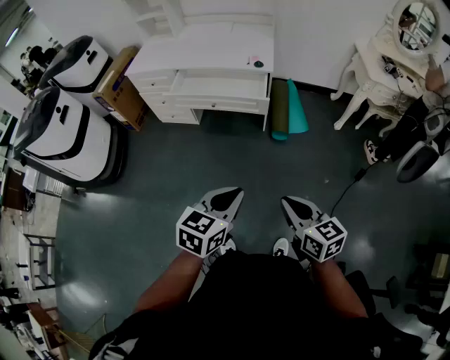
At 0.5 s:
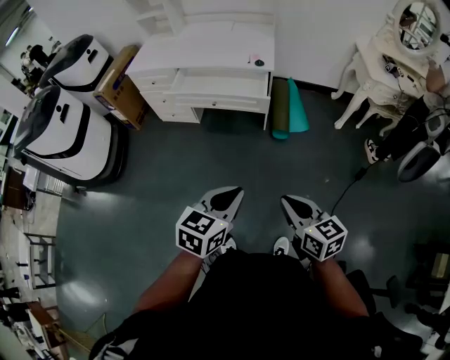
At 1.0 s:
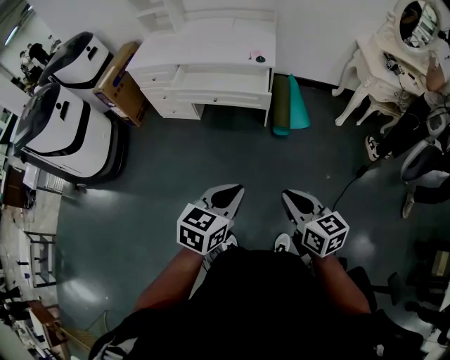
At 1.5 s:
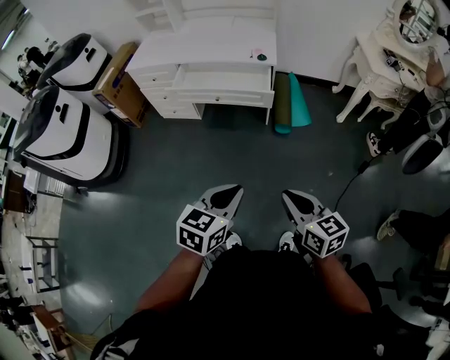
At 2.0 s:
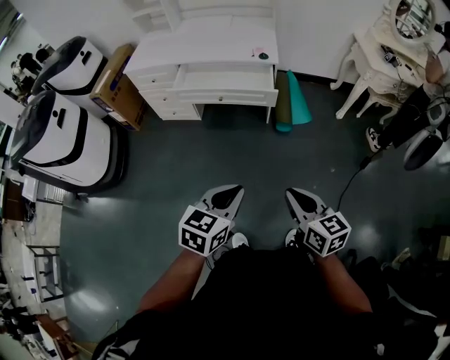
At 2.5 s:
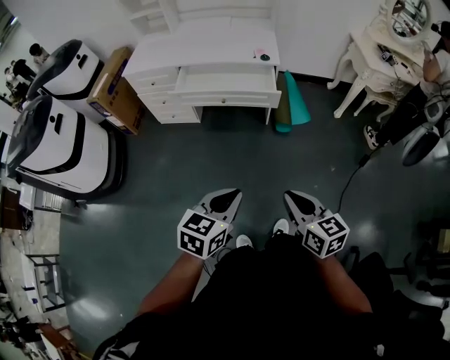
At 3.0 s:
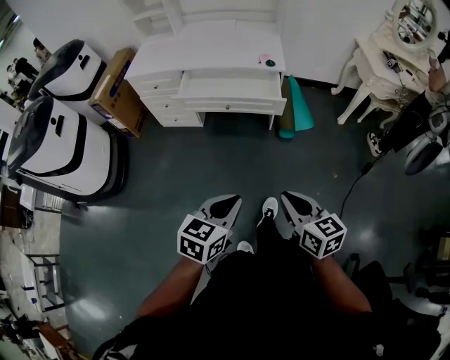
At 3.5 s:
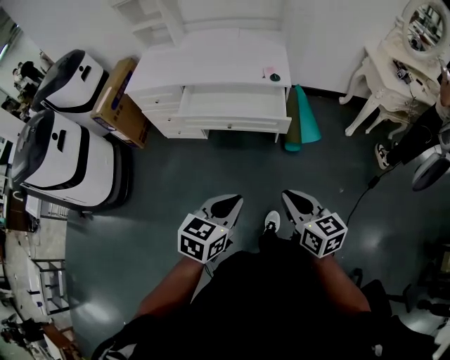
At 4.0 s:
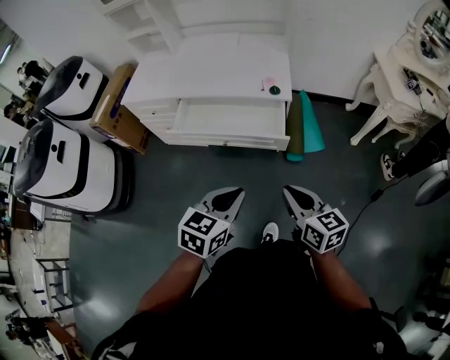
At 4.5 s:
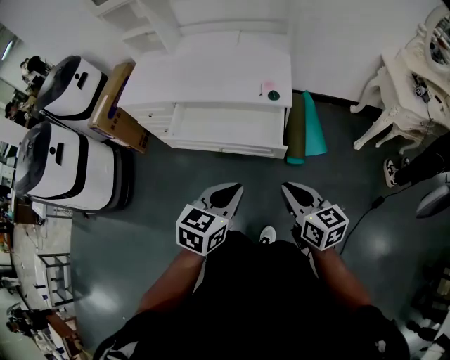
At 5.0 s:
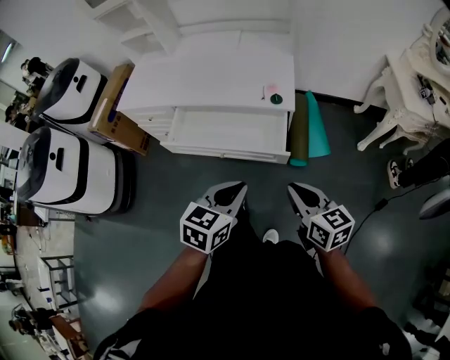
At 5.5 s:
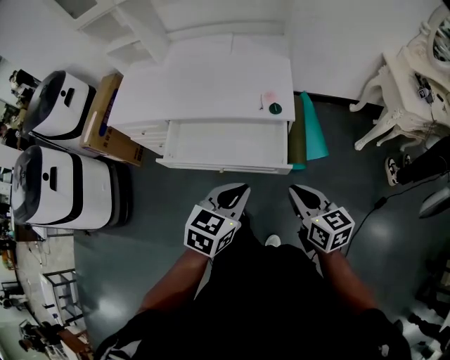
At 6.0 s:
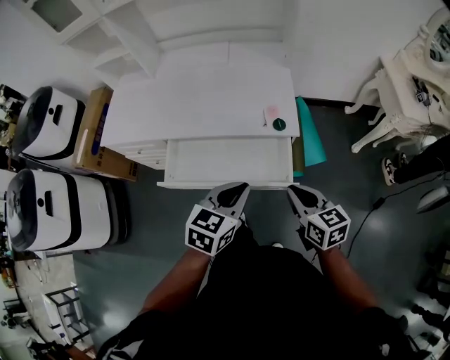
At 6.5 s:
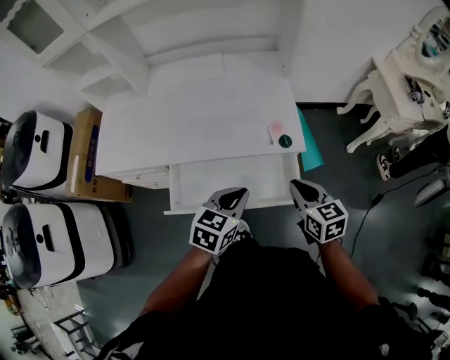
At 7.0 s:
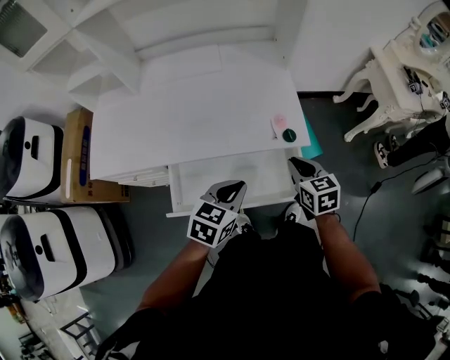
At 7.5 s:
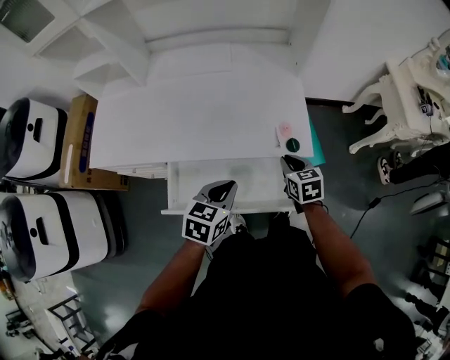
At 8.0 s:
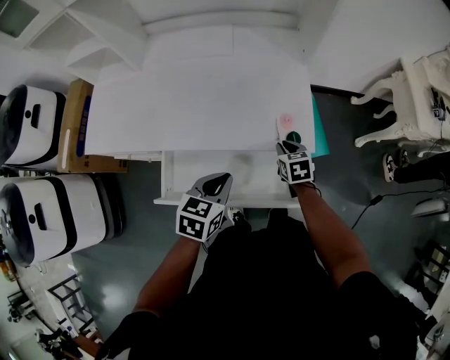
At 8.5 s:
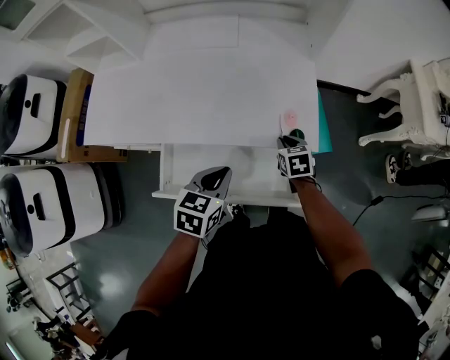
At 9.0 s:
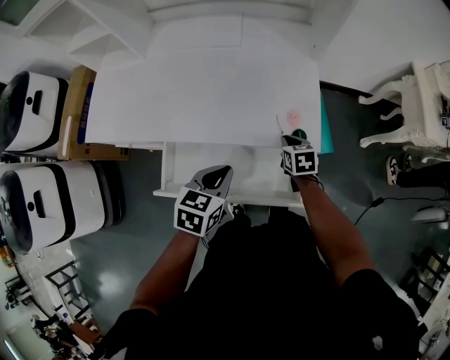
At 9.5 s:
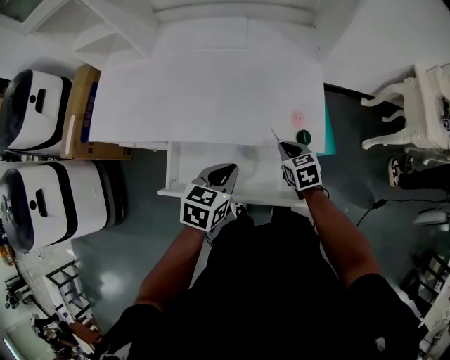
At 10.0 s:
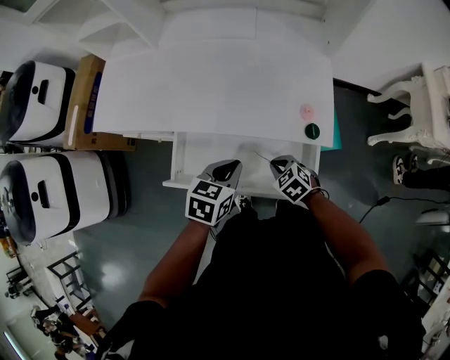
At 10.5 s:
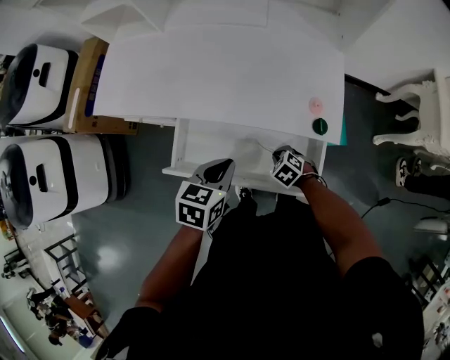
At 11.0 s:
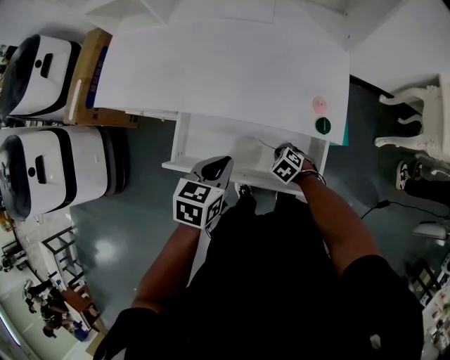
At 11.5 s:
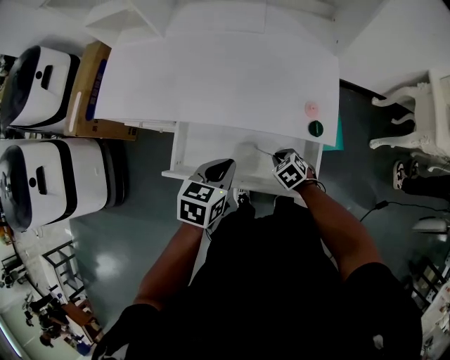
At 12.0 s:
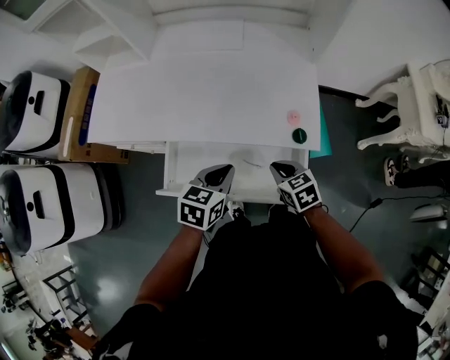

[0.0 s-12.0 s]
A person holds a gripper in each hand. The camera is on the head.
0.0 to 2.0 s: Both grippers travel together to the left, approximately 5 cm.
2.0 to 4.0 s: The two grippers go roughly 25 cm forward.
4.0 to 6.0 s: Both grippers travel together forward, some 25 cm.
6.0 to 8.0 s: The left gripper shifts some 20 cm forward, to the left and downward, while the right gripper travels forward and downward by approximately 30 cm, and rotates some 30 degrees.
8.0 to 10.0 s: The right gripper is displaced backward and to the left by some 15 cm, and changes its angle by approximately 40 degrees.
10.0 to 12.0 s: The right gripper is displaced upward by approximately 10 cm, and swivels about 30 degrees.

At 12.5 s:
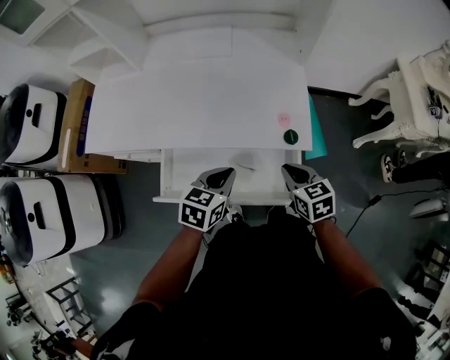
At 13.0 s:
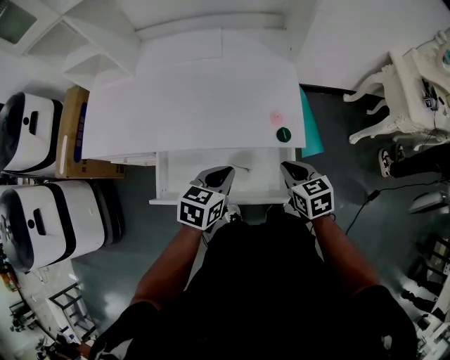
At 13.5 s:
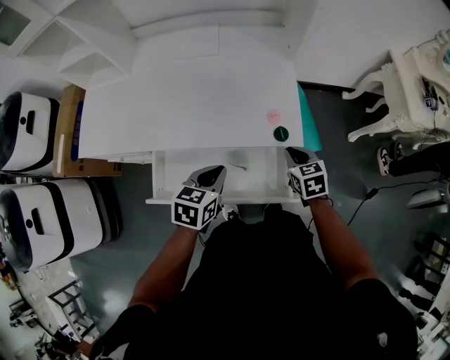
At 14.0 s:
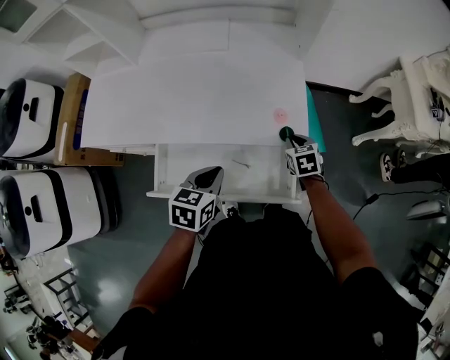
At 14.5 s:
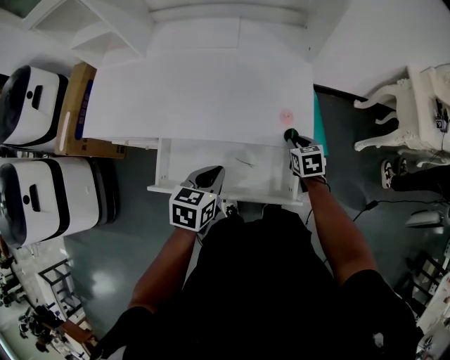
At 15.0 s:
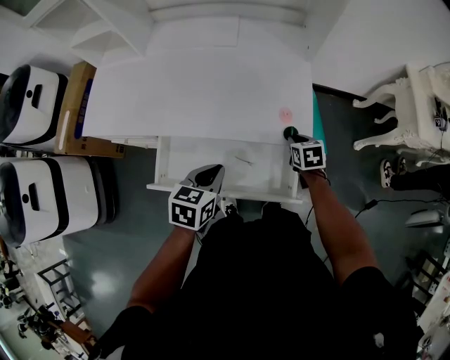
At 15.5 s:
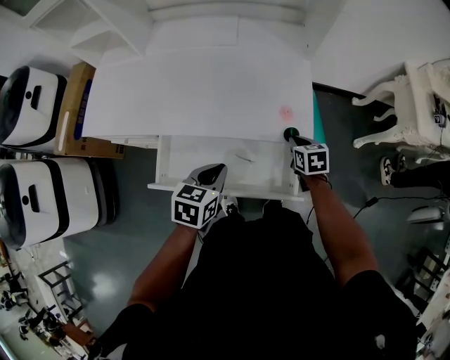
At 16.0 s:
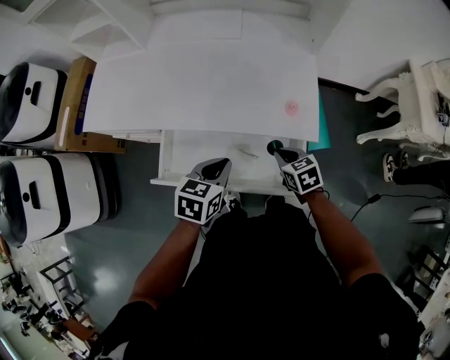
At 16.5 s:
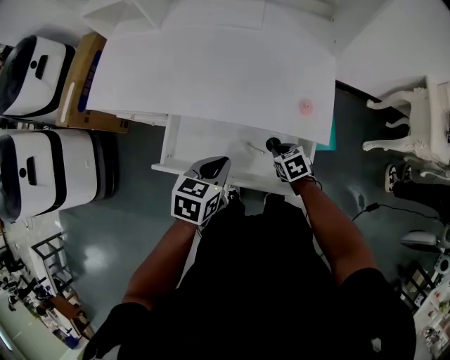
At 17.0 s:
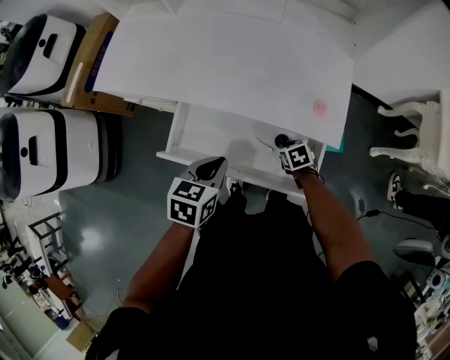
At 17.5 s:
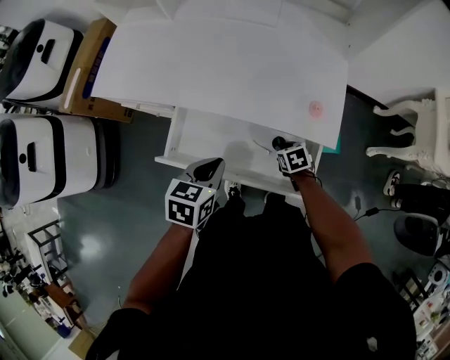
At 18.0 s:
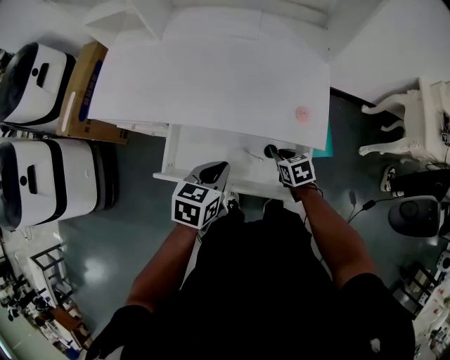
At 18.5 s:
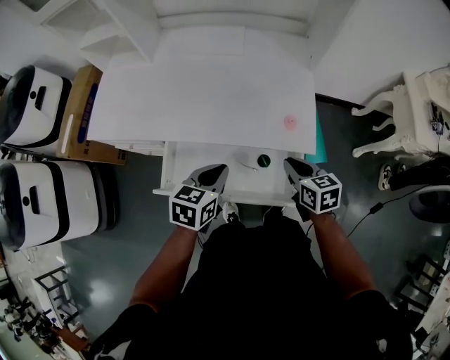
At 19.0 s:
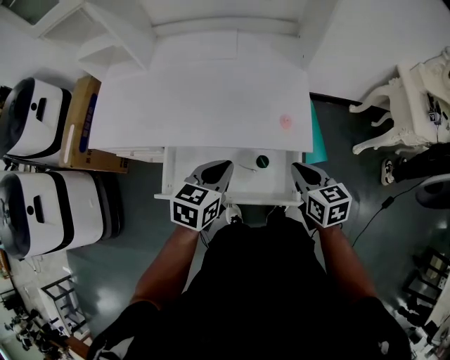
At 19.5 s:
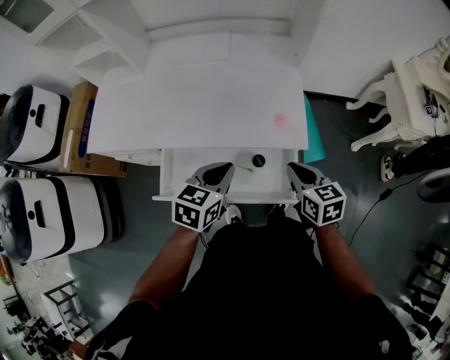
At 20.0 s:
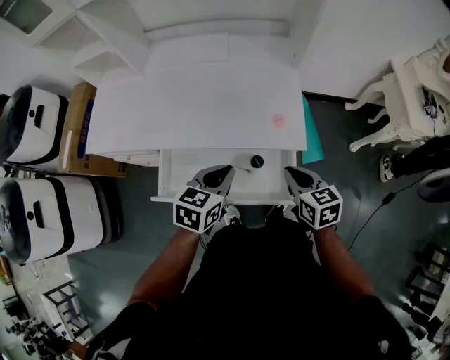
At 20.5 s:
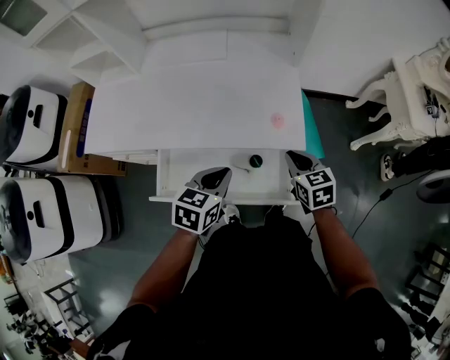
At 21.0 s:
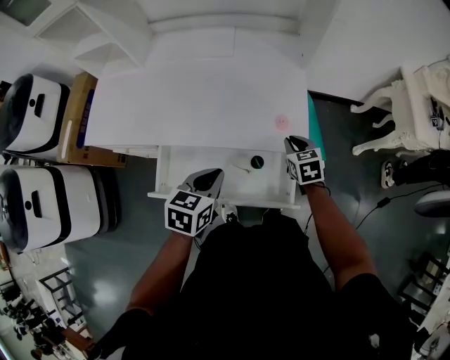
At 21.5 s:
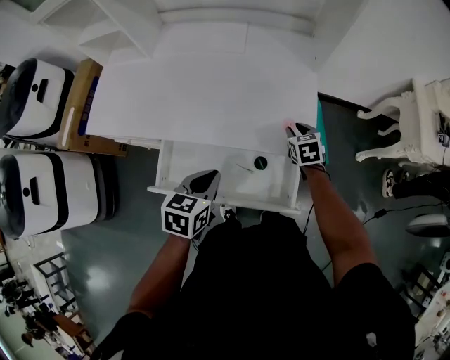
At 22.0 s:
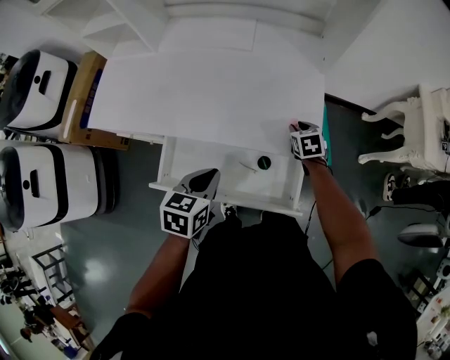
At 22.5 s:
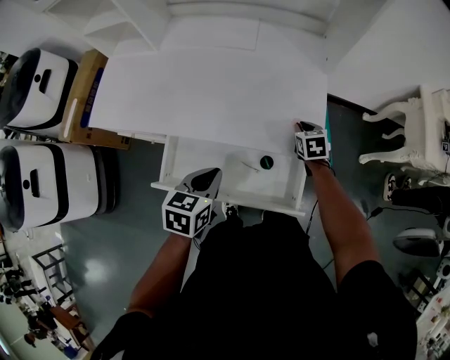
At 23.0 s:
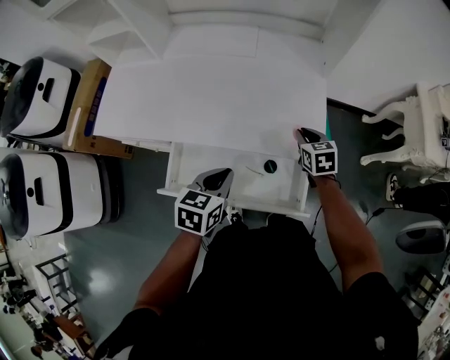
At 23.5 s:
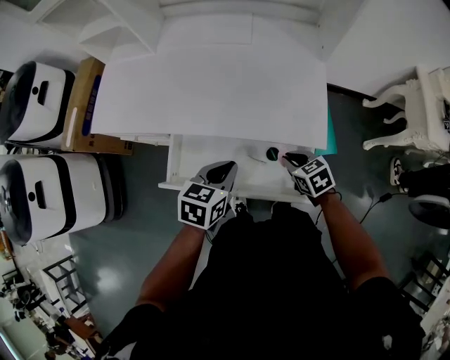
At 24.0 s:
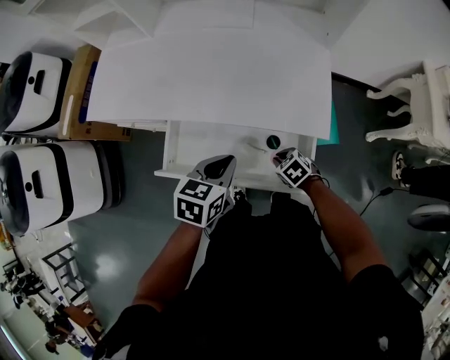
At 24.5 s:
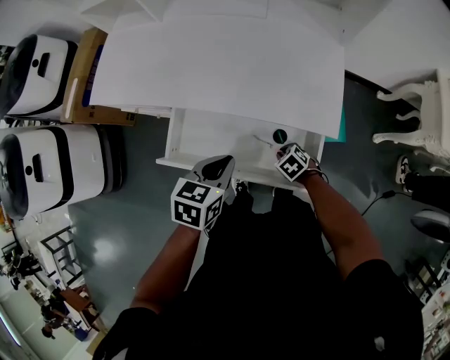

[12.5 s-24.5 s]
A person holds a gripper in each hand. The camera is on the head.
12.5 to 14.5 s: The right gripper moves forward and downward, approximately 15 cm.
14.5 to 16.5 s: The right gripper shifts some 15 cm to the left, backward and downward, and changes its angle by approximately 20 degrees.
16.5 to 18.5 s: The right gripper shifts some 15 cm upward, and swivels roughly 30 degrees.
18.5 to 20.5 s: The left gripper moves roughly 5 cm.
20.5 to 22.5 s: The right gripper is displaced forward and downward by some 20 cm. The left gripper shifts about 5 cm to the left.
22.5 to 24.5 s: The right gripper shifts by some 25 cm, and swivels about 40 degrees.

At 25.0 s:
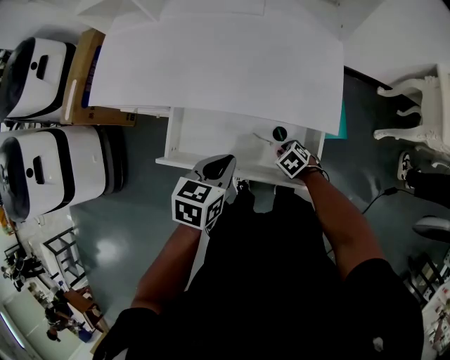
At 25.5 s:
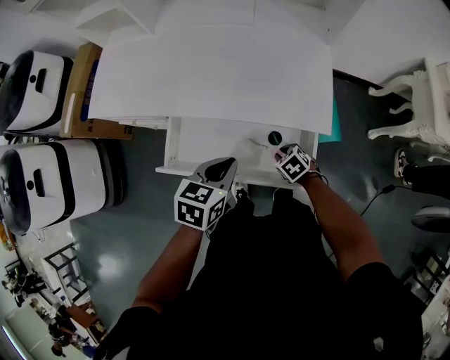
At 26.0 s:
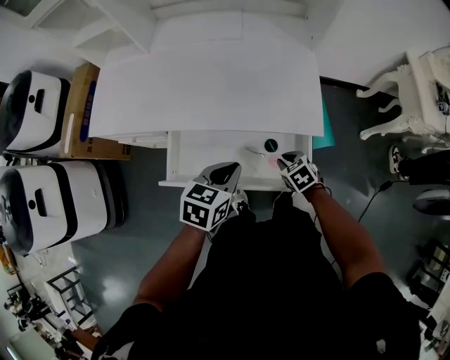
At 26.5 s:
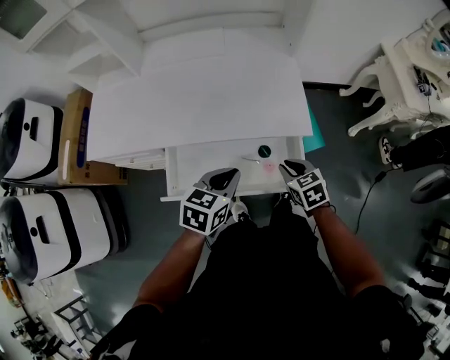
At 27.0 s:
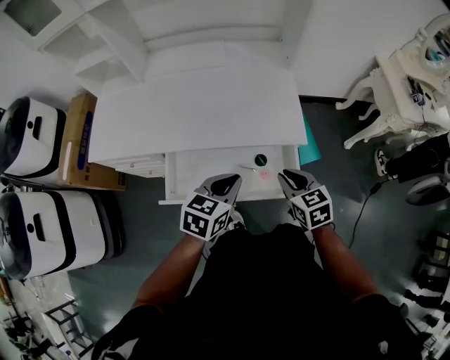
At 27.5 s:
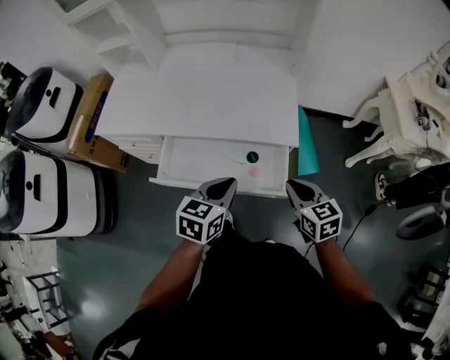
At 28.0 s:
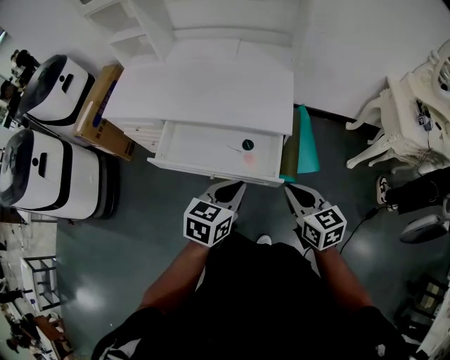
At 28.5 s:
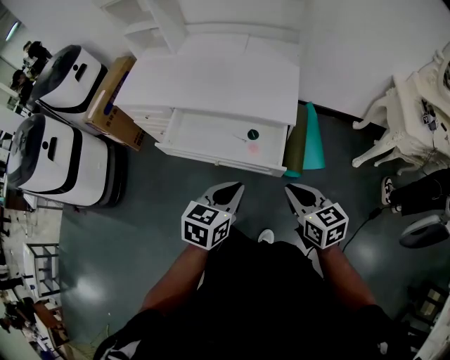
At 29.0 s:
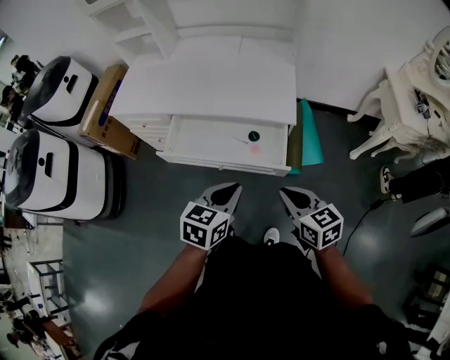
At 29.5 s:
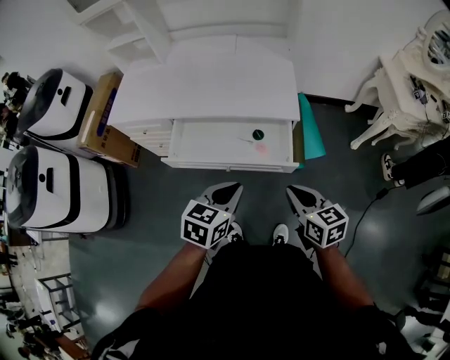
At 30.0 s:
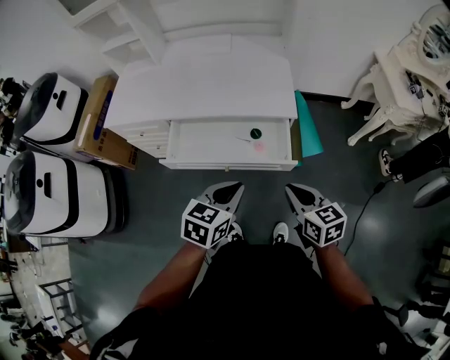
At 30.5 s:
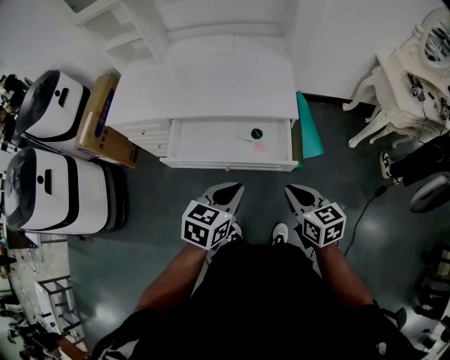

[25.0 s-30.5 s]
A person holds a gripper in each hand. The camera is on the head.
25.0 to 27.0 s: The left gripper goes about 5 cm upward, and turns by roughly 20 degrees. The right gripper goes some 25 cm upward, and tilts its fingers some 30 degrees upward.
27.0 to 28.5 s: Both grippers travel together backward and to the right, about 20 cm. The right gripper changes its angle by about 20 degrees.
28.5 to 30.5 s: Both grippers travel together to the left, roughly 5 cm.
